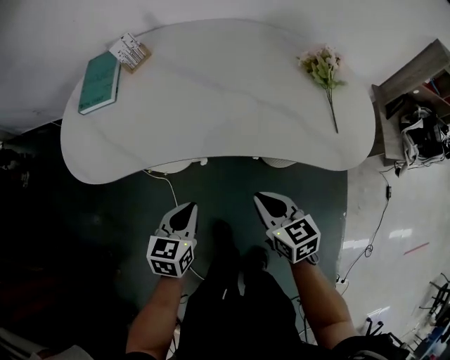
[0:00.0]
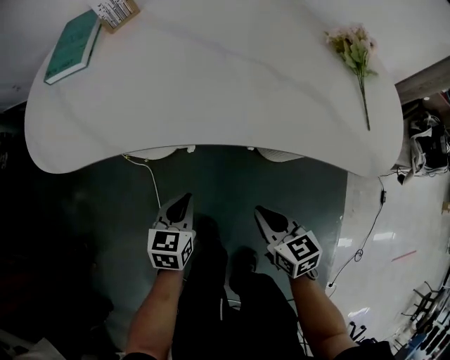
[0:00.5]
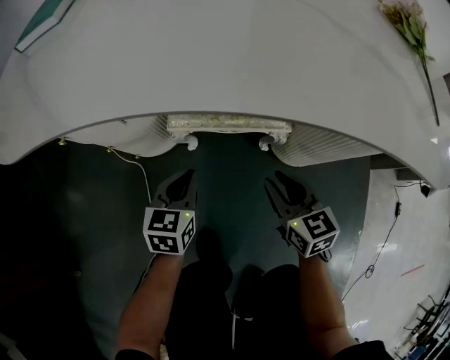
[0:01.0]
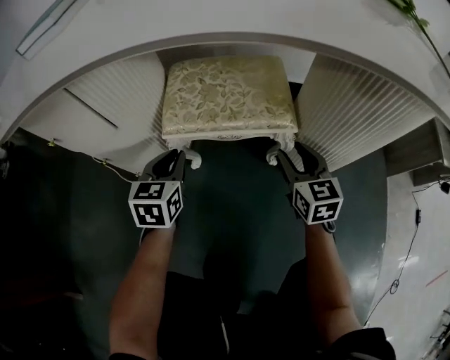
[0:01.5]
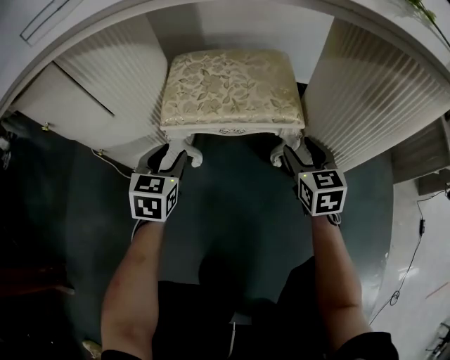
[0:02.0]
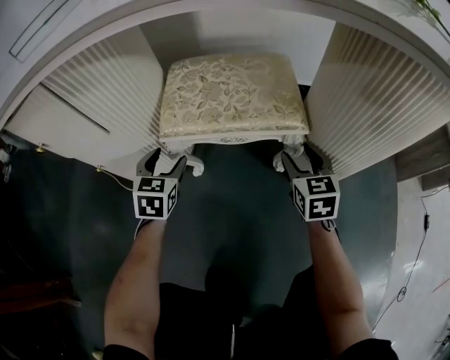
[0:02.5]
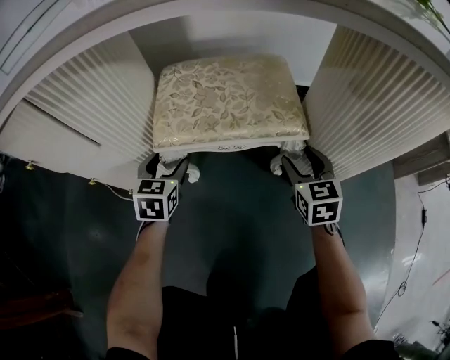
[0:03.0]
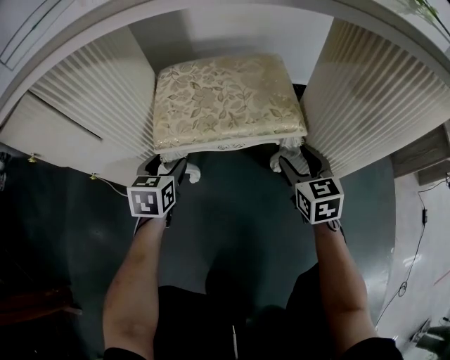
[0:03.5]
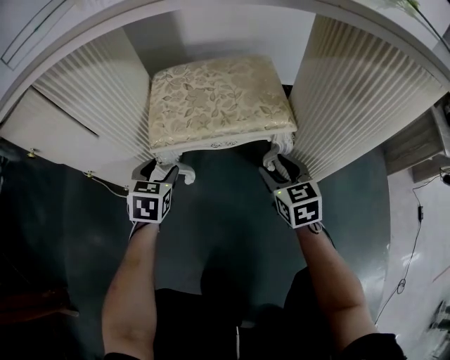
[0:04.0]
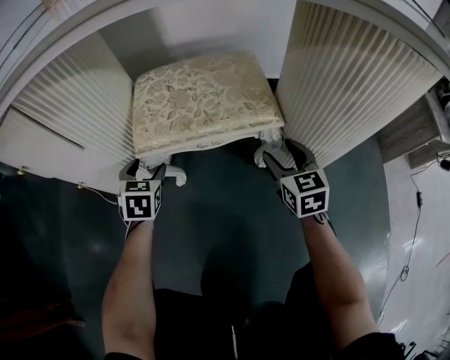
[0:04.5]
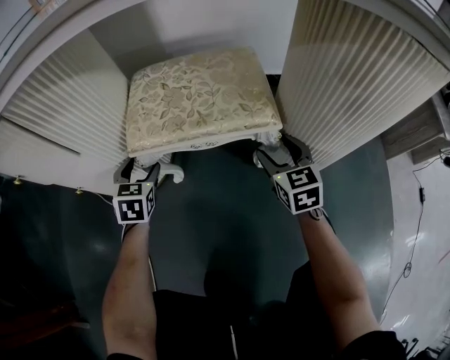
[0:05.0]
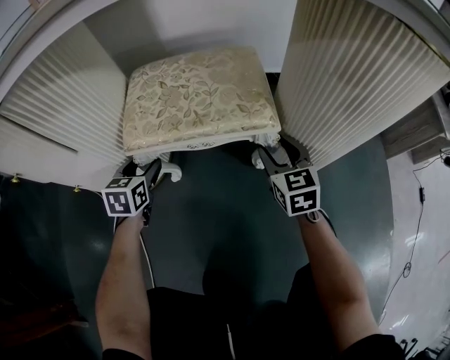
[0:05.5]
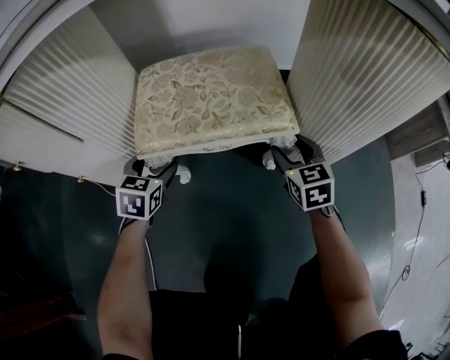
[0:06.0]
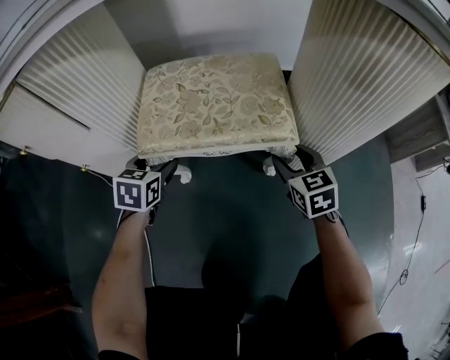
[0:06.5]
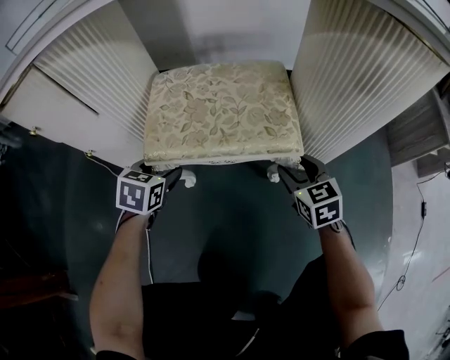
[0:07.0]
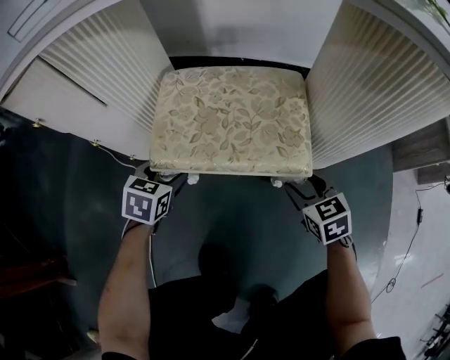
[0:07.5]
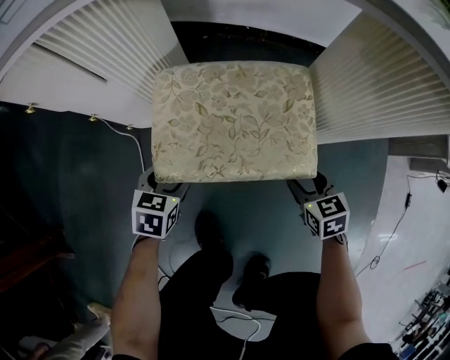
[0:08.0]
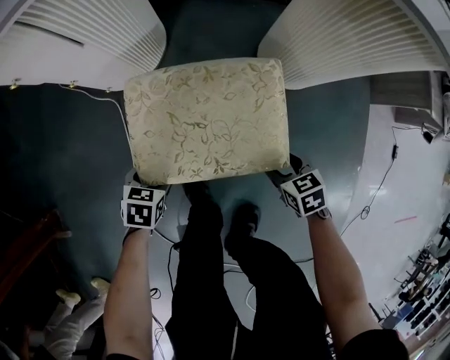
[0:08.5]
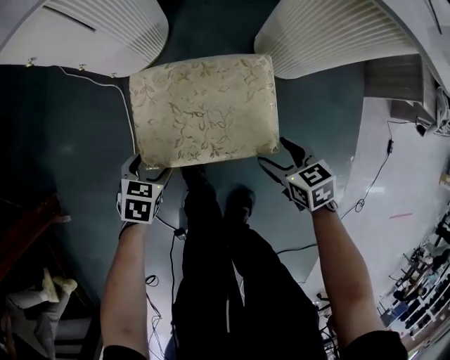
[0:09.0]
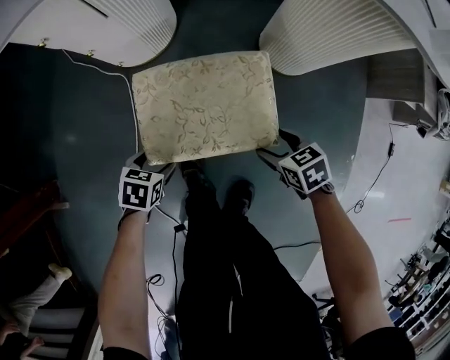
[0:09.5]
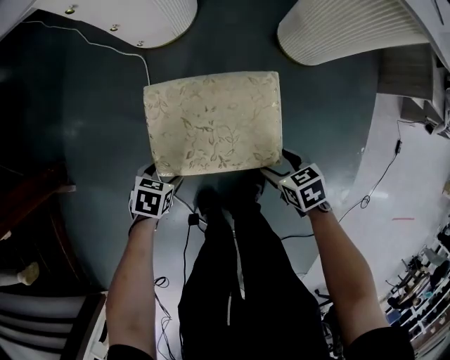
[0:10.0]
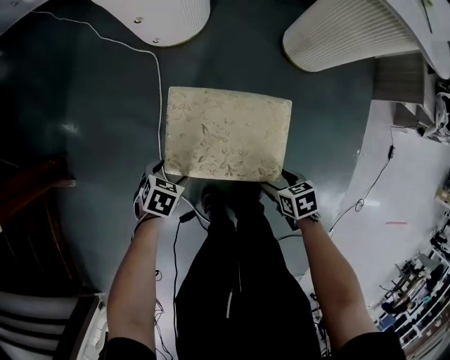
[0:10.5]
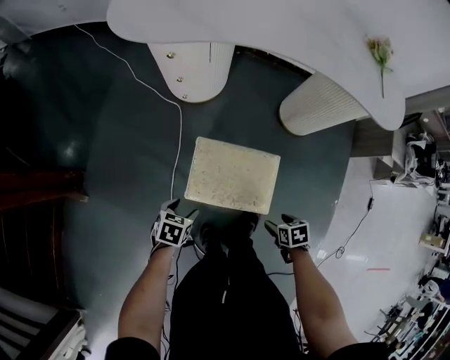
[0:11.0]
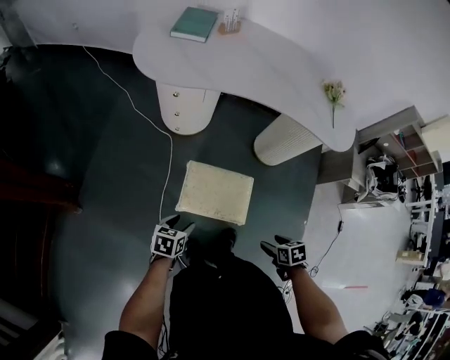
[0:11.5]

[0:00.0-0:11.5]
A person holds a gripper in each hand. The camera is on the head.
0:00.0 to 0:02.0: The grippers both shift downward and forward by about 40 cm. The left gripper opens; the right gripper rotates approximately 20 degrees, and opens.
0:02.0 to 0:04.0: Both grippers travel together downward, approximately 5 cm.
0:04.0 to 0:06.0: The right gripper is displaced forward by approximately 5 cm.
0:06.0 to 0:07.5: There are only small adjustments of the grippers.
0:07.5 to 0:09.5: Both grippers travel together upward, roughly 5 cm. The left gripper rotates approximately 30 degrees, while the right gripper rotates some 30 degrees.
0:09.5 to 0:11.5: Both grippers move upward, some 30 cm. The left gripper rotates roughly 30 degrees.

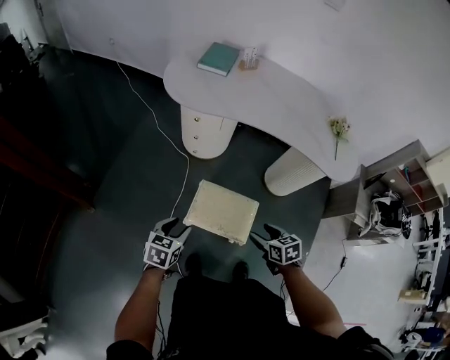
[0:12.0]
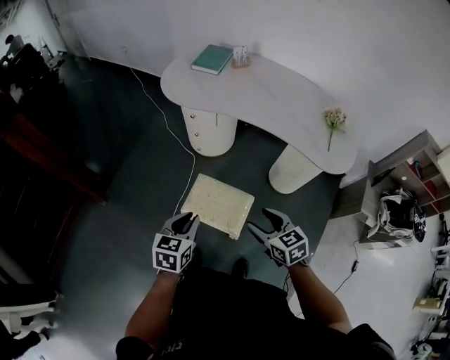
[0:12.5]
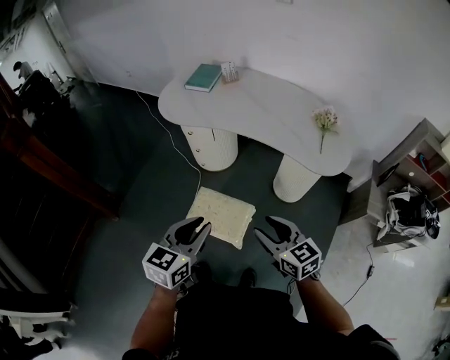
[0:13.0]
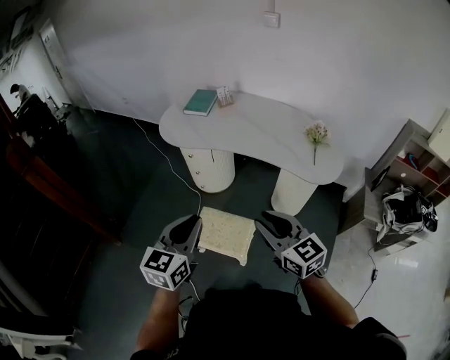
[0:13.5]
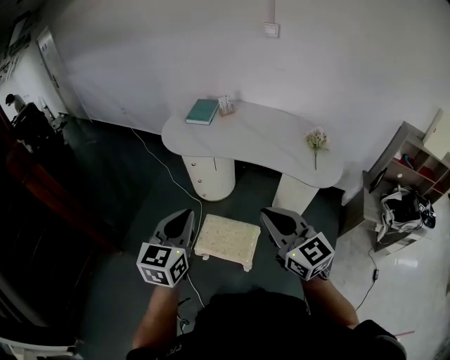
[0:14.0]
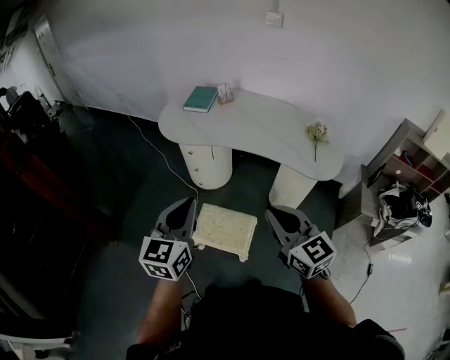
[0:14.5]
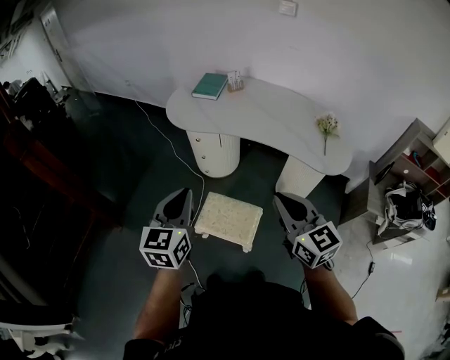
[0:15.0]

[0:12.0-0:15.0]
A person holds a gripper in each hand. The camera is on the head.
0:12.0 to 0:13.5: The left gripper is displaced upward and to the right by some 35 cm, swivels approximately 30 degrees, and closes up. Meanwhile the right gripper heads upward, covering roughly 30 cm, angles its fingers upward, by roughly 40 degrees, and closes.
0:13.5 to 0:15.0: The left gripper shifts about 5 cm to the left.

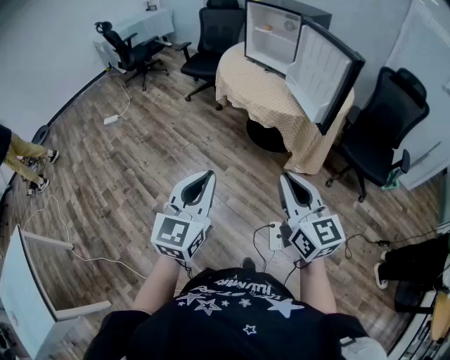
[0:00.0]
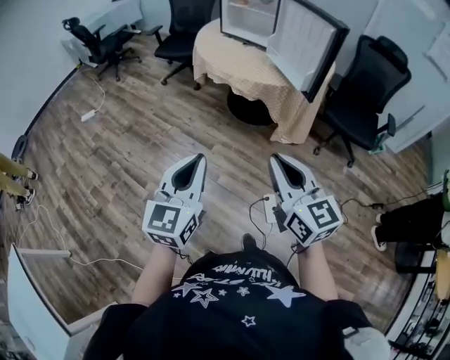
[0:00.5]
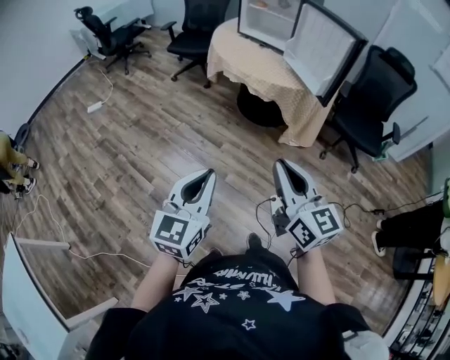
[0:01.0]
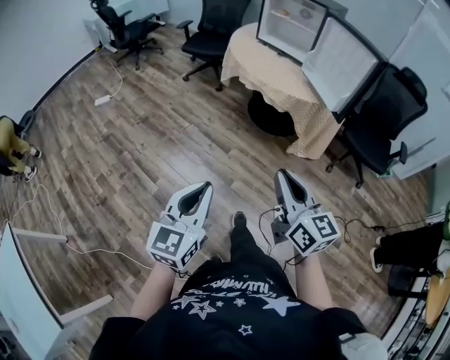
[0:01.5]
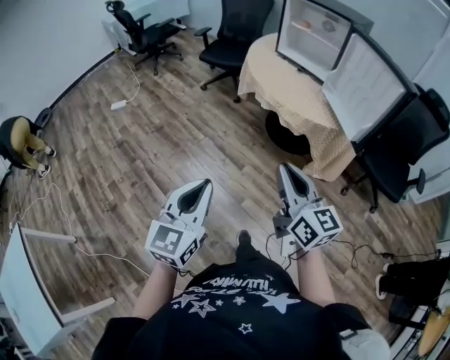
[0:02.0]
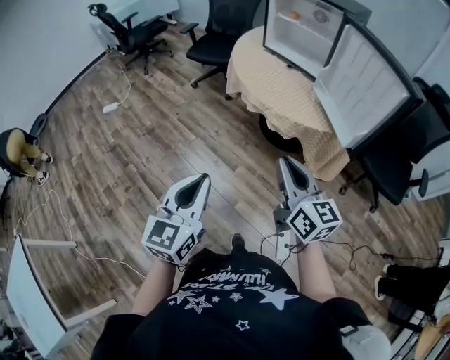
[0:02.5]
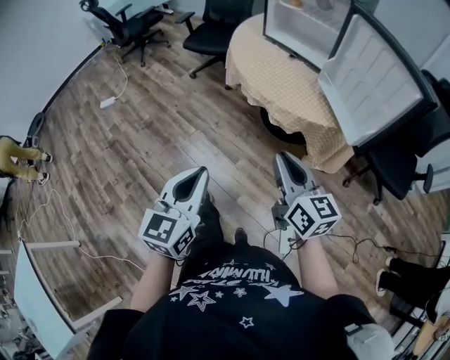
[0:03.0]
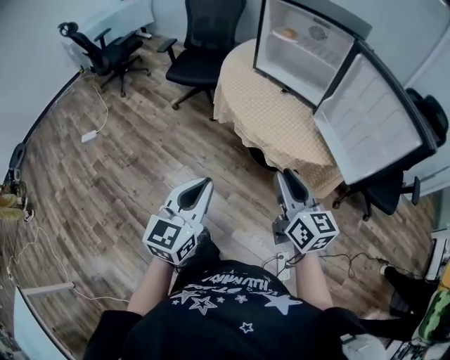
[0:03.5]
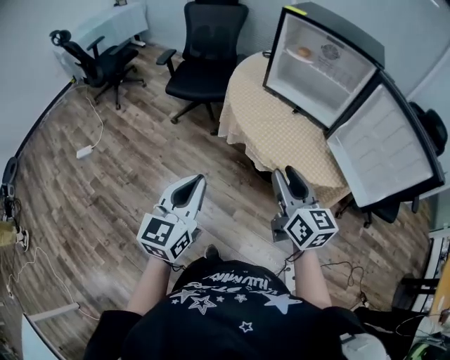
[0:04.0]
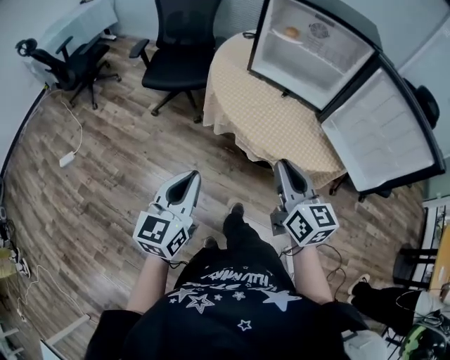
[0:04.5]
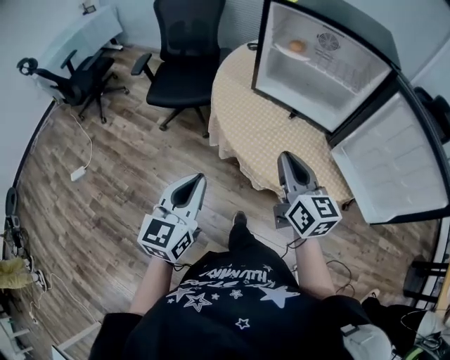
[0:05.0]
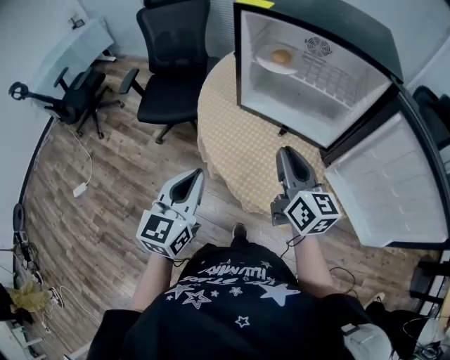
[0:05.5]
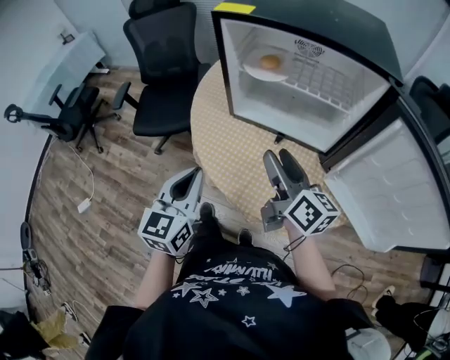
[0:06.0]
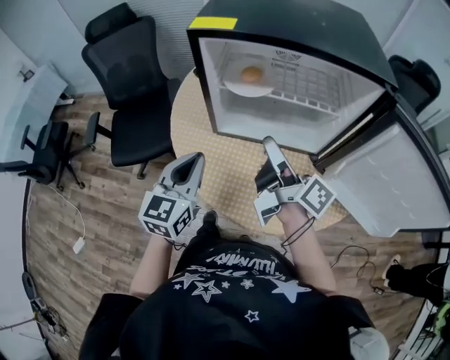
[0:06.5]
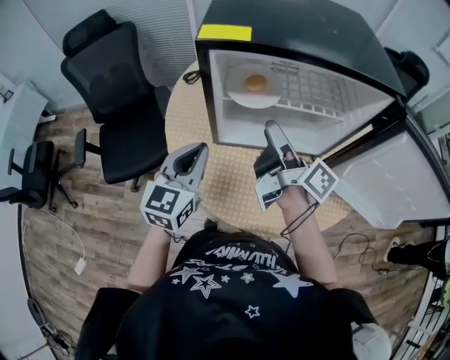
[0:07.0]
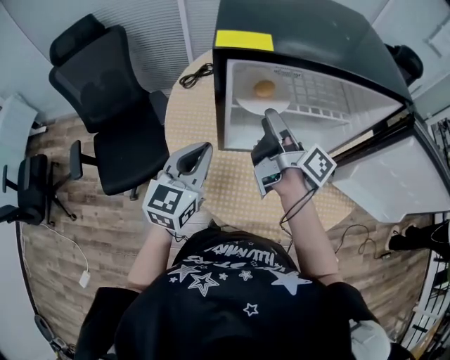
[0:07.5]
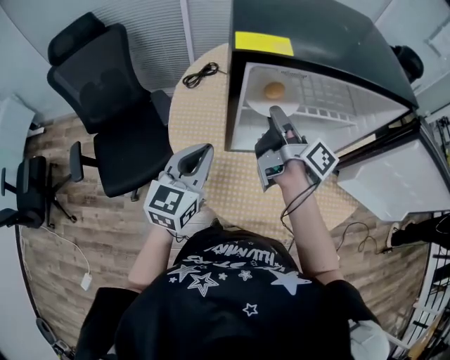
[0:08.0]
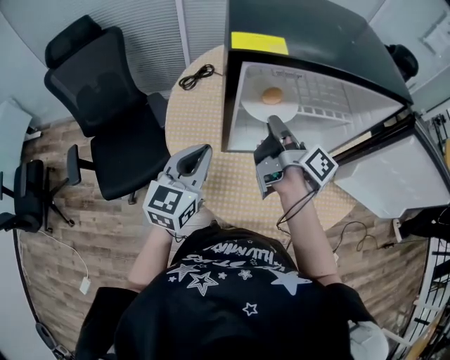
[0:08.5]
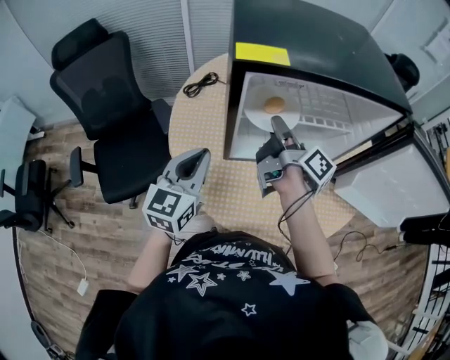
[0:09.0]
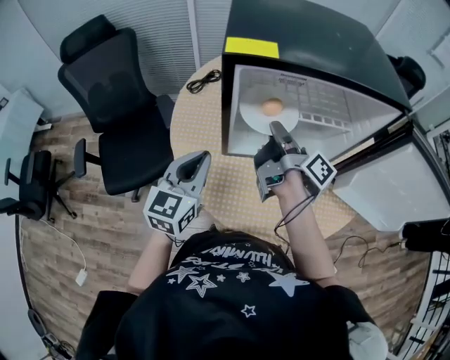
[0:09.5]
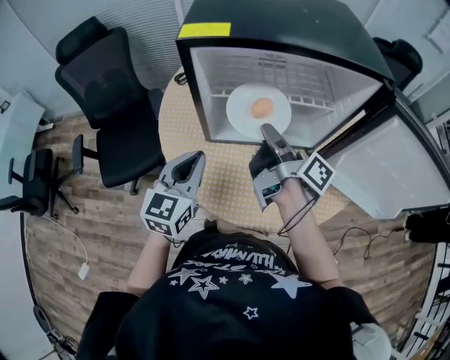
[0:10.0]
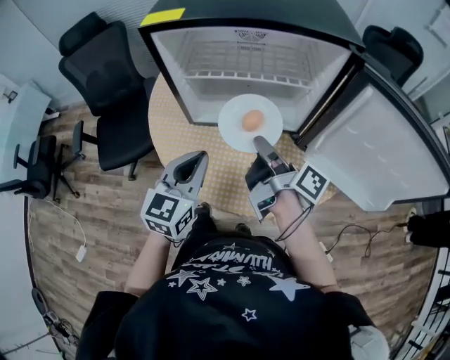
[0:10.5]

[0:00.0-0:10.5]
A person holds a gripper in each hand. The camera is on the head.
0:00.0 to 0:02.0: The right gripper shifts approximately 20 cm forward and to the left; the left gripper shifts roughly 15 cm to the left and forward.
0:02.0 to 0:04.0: Both grippers travel together forward, approximately 40 cm. The right gripper opens its fingers.
0:04.0 to 0:06.5: Both grippers move forward, approximately 40 cm. The right gripper rolls clockwise, seen from behind, by approximately 50 degrees, and opens. Meanwhile the left gripper swivels about 30 degrees.
0:06.5 to 0:08.5: The two grippers go roughly 15 cm forward and to the left. The right gripper rotates approximately 20 degrees, and closes.
0:08.5 to 0:10.5: Both grippers travel together to the right and backward, about 20 cm.

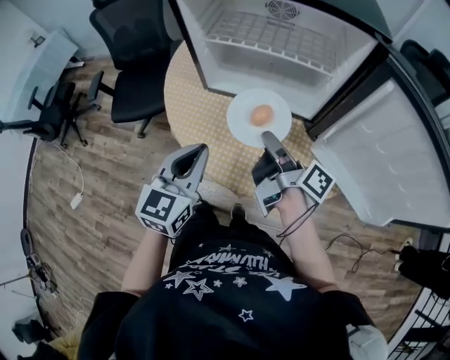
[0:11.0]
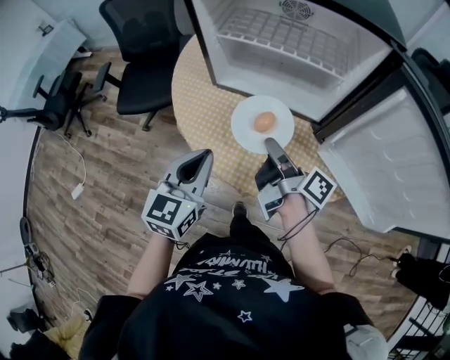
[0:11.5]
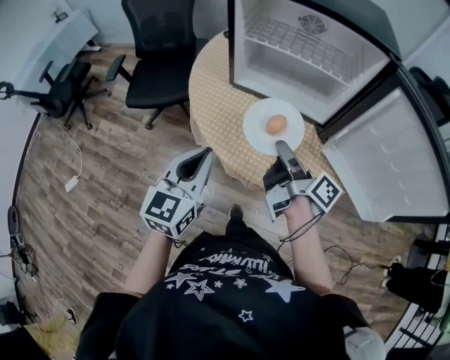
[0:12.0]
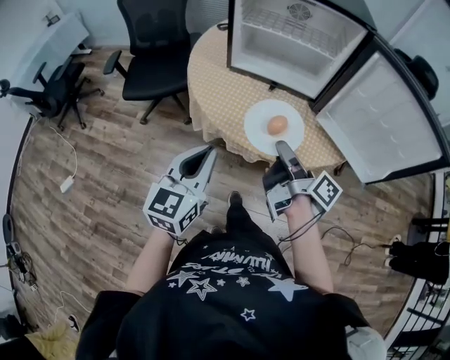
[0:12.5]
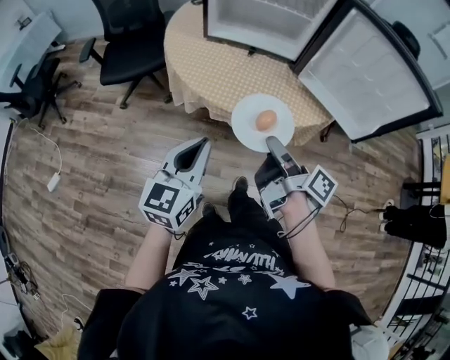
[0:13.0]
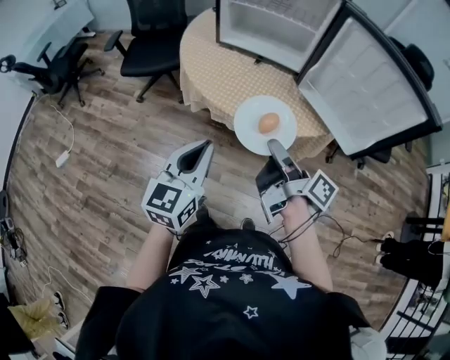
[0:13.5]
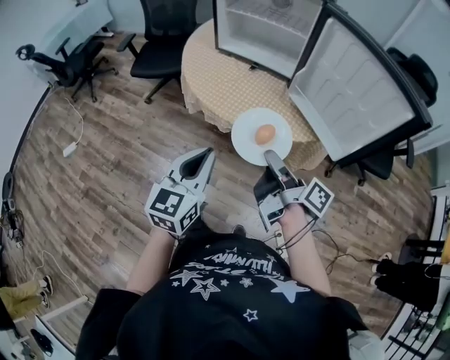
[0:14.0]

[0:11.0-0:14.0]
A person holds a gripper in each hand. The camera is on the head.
0:11.0 to 0:12.5: Both grippers travel together backward, approximately 20 cm.
0:12.5 to 0:14.0: The two grippers go approximately 20 cm to the right and backward.
